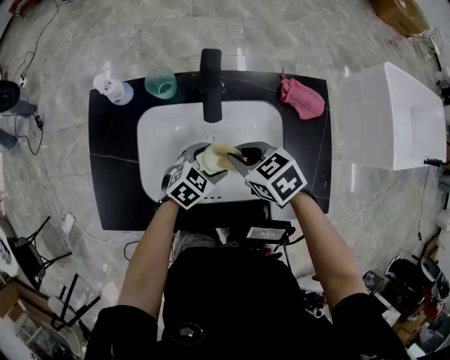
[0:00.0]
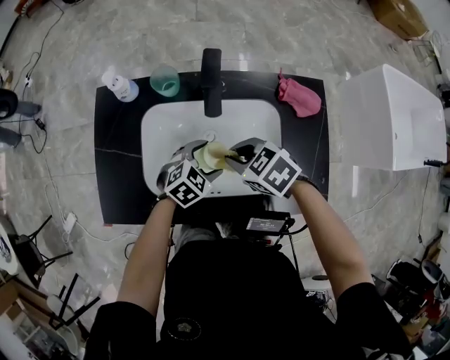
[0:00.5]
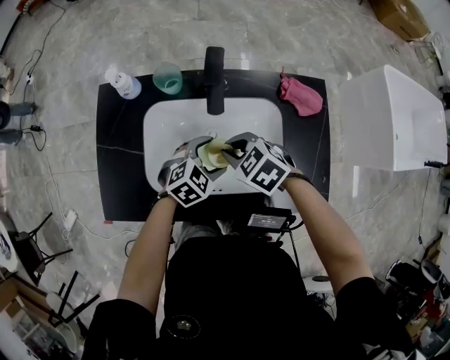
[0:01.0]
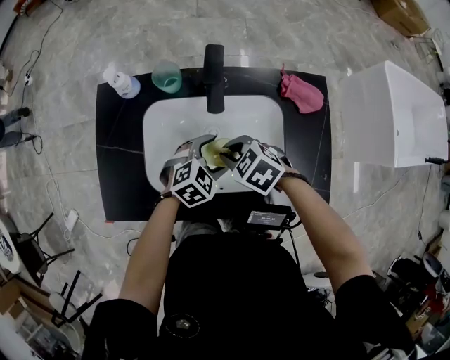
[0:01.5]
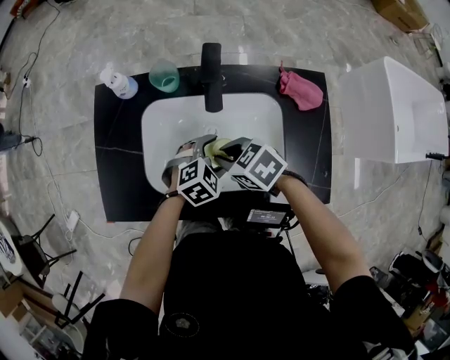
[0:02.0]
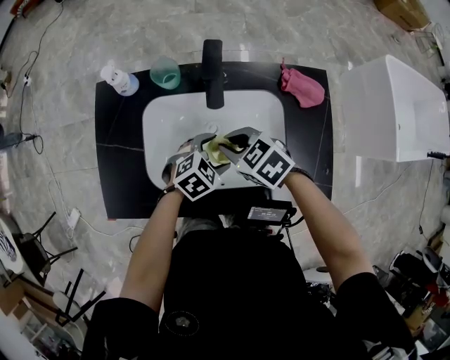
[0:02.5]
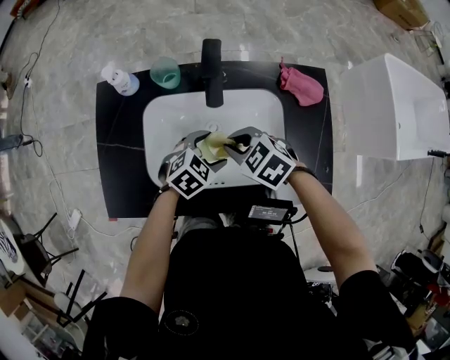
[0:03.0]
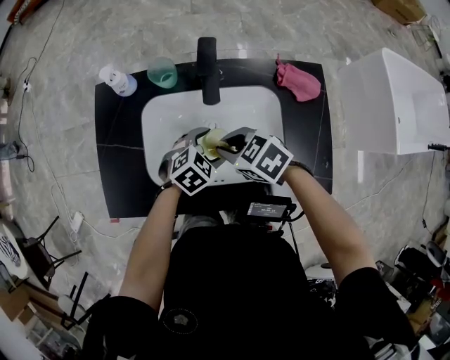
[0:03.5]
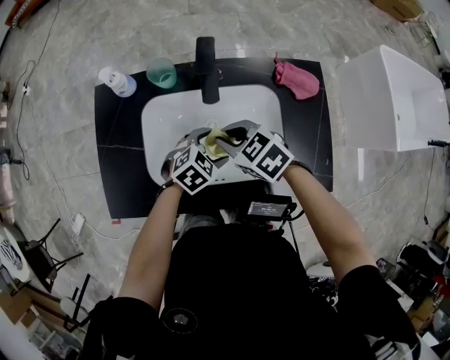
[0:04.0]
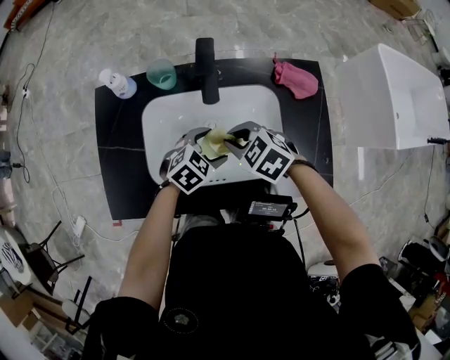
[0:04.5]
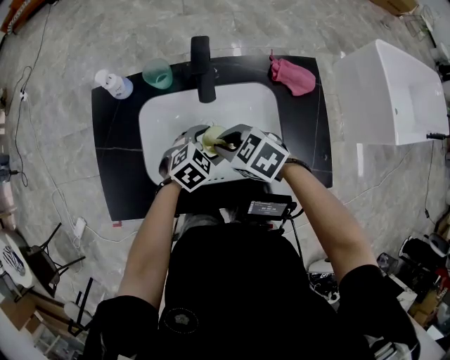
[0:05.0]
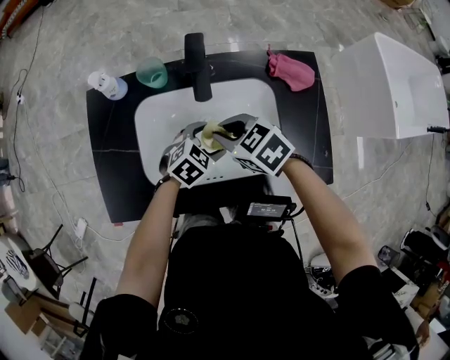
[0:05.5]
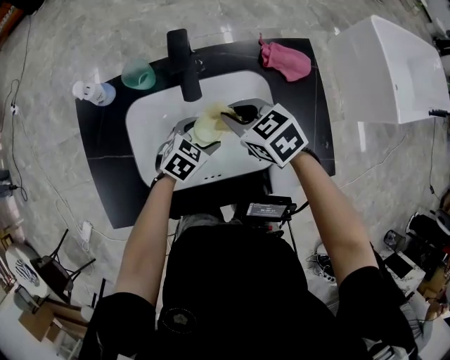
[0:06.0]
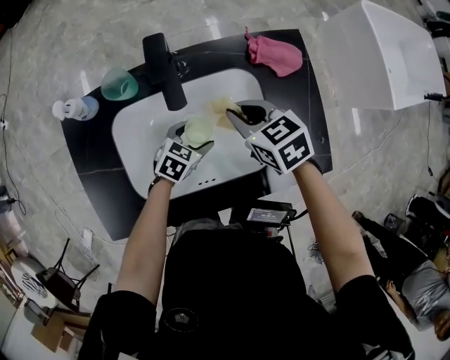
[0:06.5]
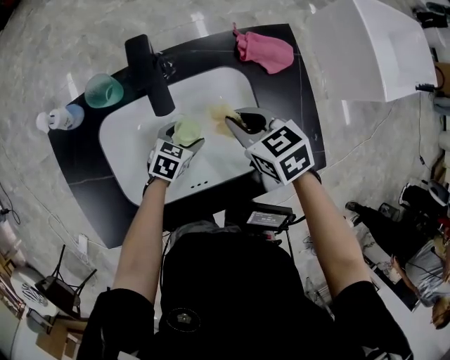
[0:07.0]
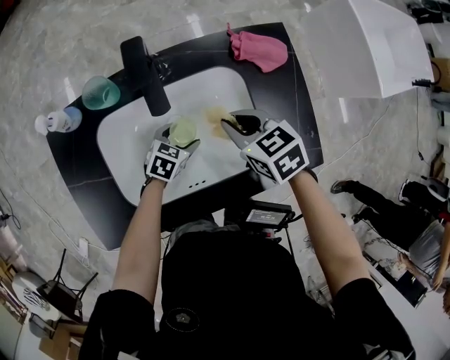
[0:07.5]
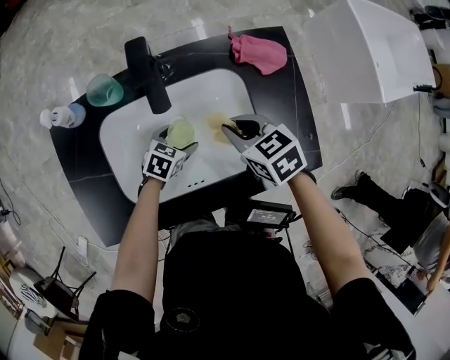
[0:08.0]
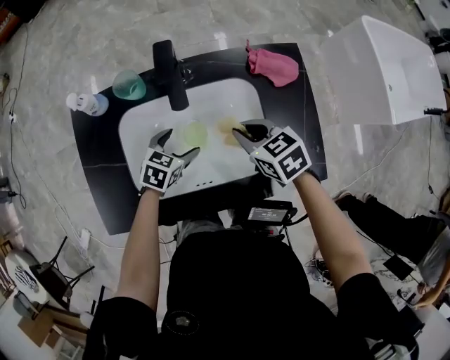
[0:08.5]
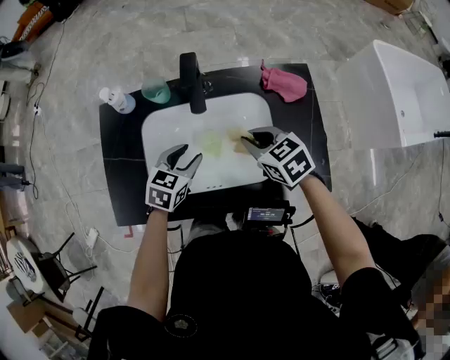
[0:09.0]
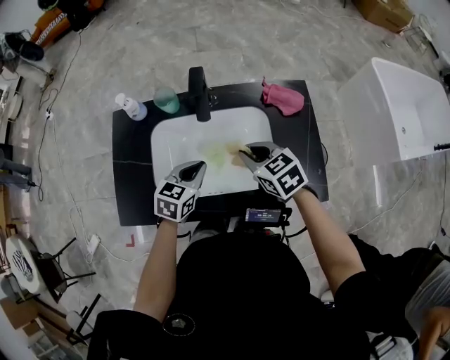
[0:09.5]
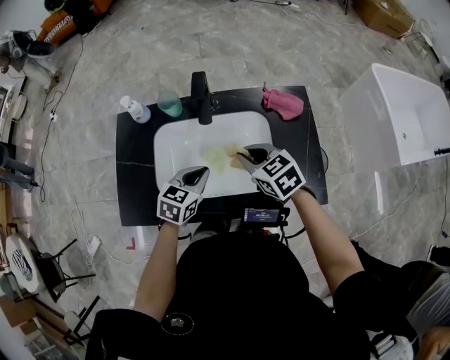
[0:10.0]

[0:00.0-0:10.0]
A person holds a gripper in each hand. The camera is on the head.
0:00.0 to 0:02.0: The right gripper moves roughly 5 cm.
0:02.0 to 0:04.0: The grippers make only small movements.
0:04.0 to 0:06.0: The right gripper ends up approximately 5 cm from where it was.
0:06.0 to 0:08.0: The left gripper travels downward by some 10 cm; the right gripper travels to the right by approximately 5 cm.
0:08.0 to 0:10.0: The right gripper shifts about 5 cm upward. Meanwhile the left gripper travels upward by roughly 20 cm, changes its angle by about 30 degrees, and closes.

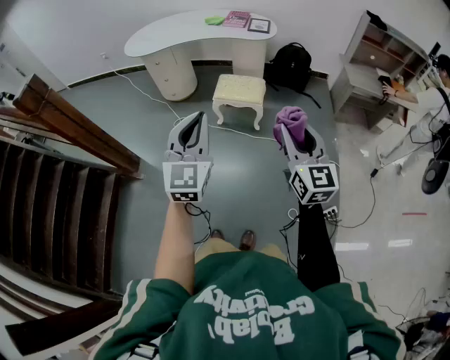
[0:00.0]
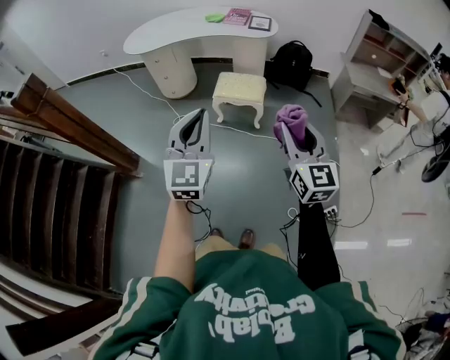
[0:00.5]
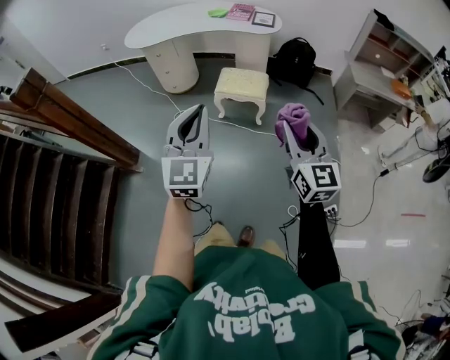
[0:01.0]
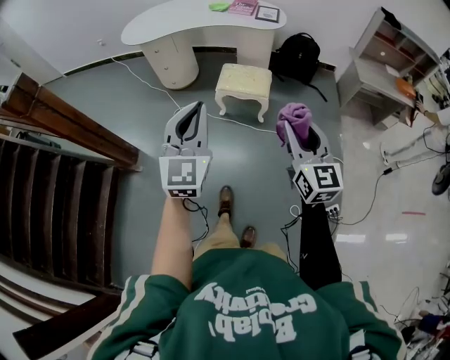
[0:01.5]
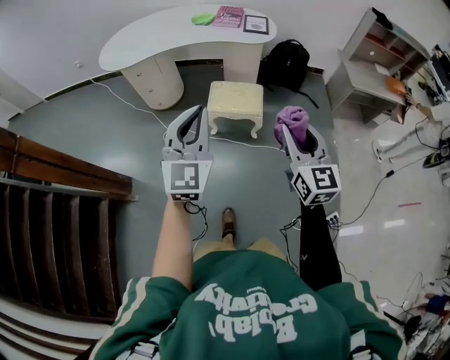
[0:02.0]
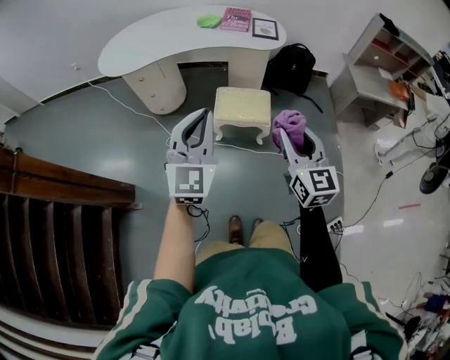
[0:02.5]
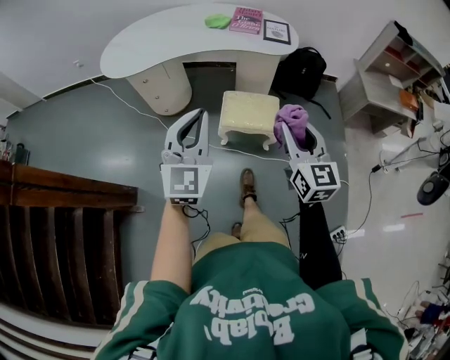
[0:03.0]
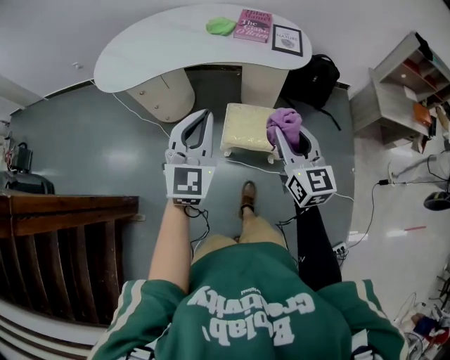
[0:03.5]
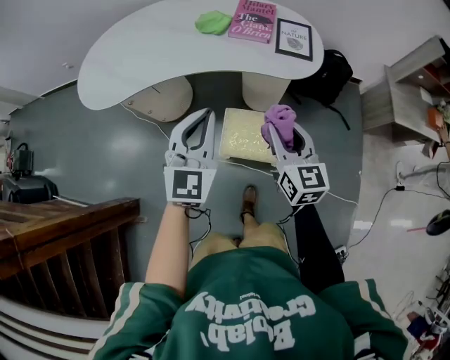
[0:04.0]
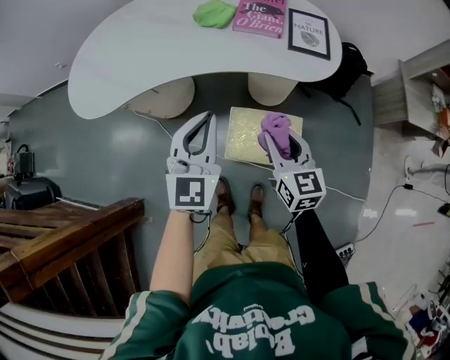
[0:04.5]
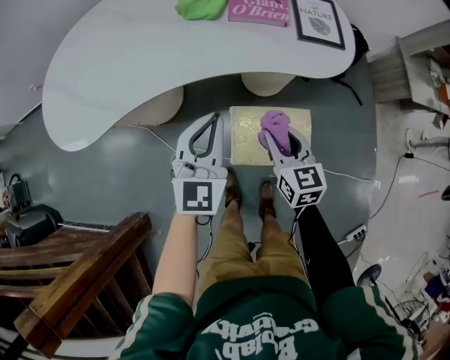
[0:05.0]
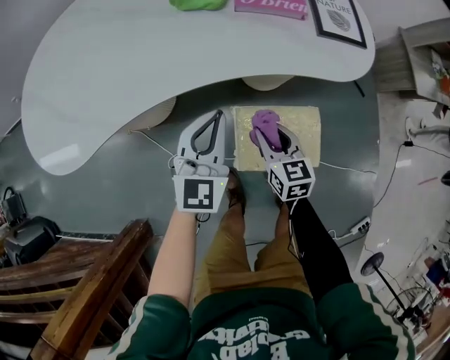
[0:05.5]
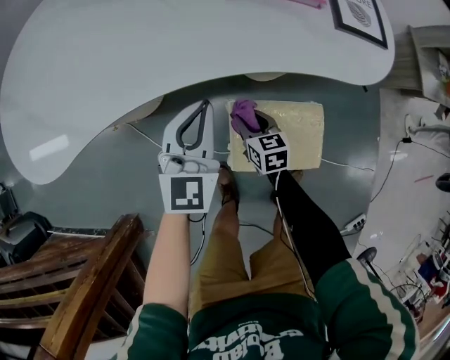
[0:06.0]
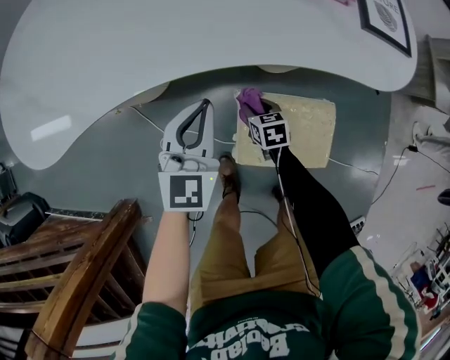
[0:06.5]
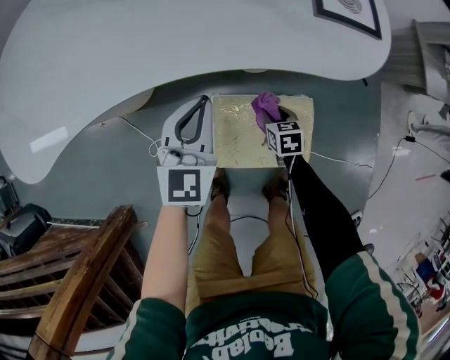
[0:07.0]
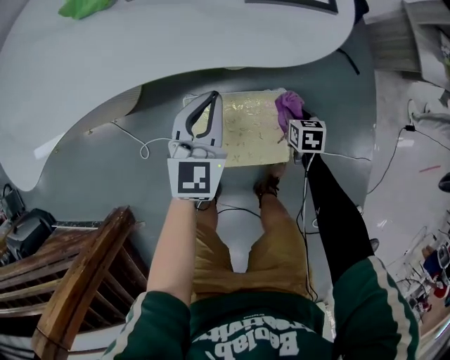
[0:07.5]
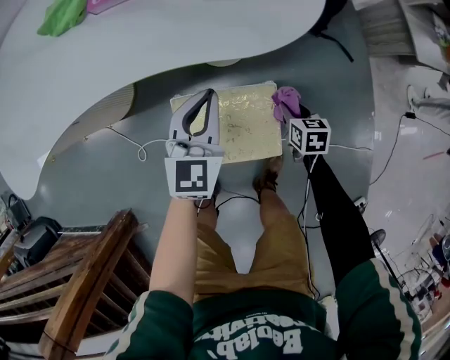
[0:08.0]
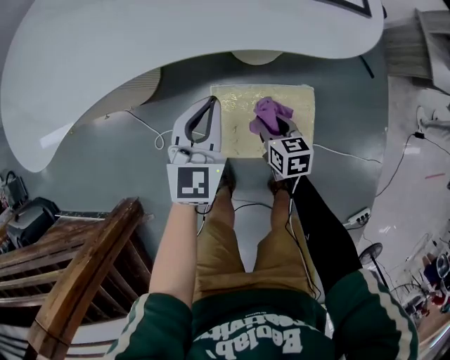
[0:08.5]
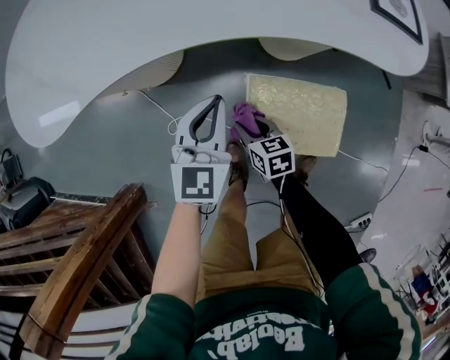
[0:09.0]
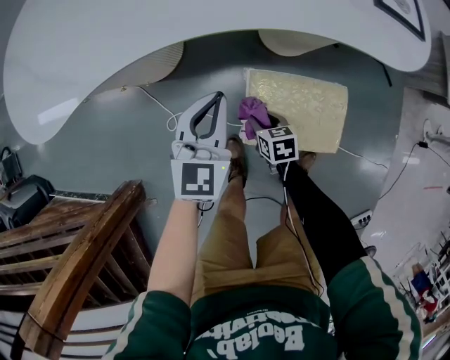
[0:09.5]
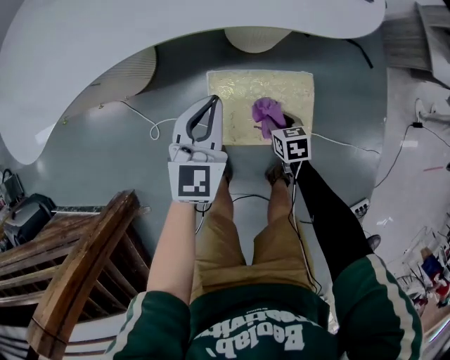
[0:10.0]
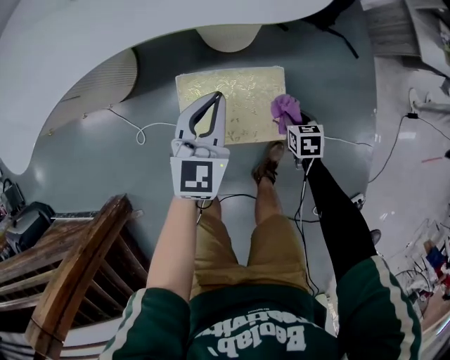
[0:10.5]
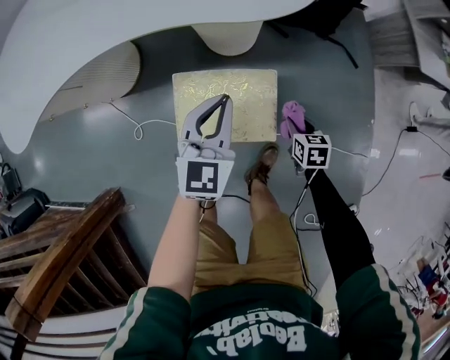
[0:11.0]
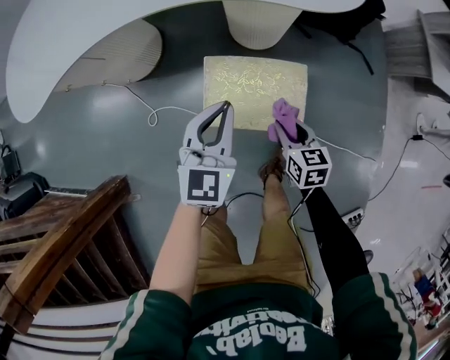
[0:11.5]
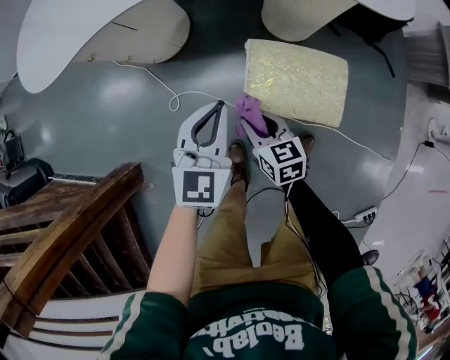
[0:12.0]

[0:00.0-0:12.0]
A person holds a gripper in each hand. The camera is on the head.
0:00.0 to 0:02.0: The two grippers go some 20 cm forward.
0:02.0 to 0:04.0: The pair of grippers is taken forward, about 40 cm.
0:04.0 to 0:06.0: The left gripper moves downward and forward, roughly 30 cm. The right gripper goes approximately 40 cm downward, and rotates roughly 30 degrees.
0:06.0 to 0:08.0: The right gripper shifts some 35 cm to the right. The left gripper heads to the right, covering roughly 20 cm.
0:08.0 to 0:10.0: The grippers both shift to the left by roughly 15 cm.
0:10.0 to 0:12.0: The left gripper moves backward and to the left, about 15 cm; the right gripper goes roughly 25 cm to the left and upward, and changes its angle by about 30 degrees.

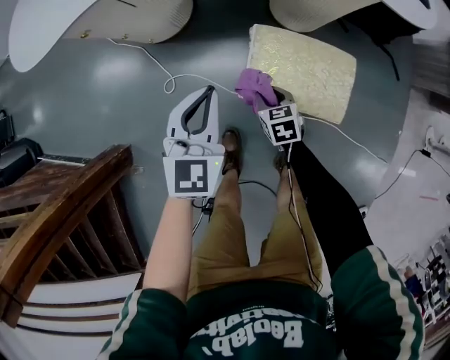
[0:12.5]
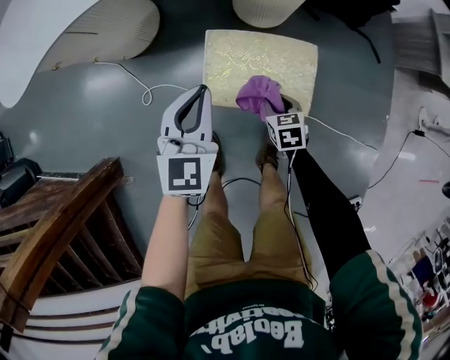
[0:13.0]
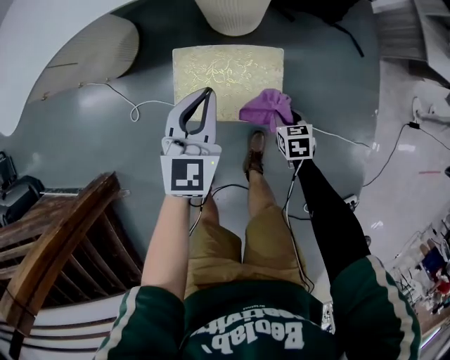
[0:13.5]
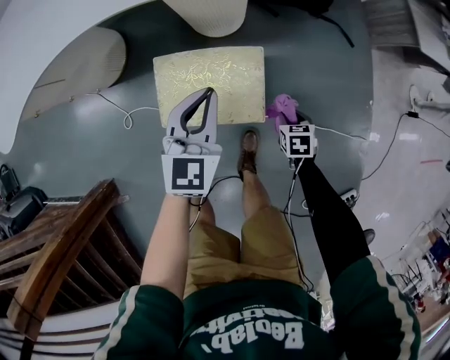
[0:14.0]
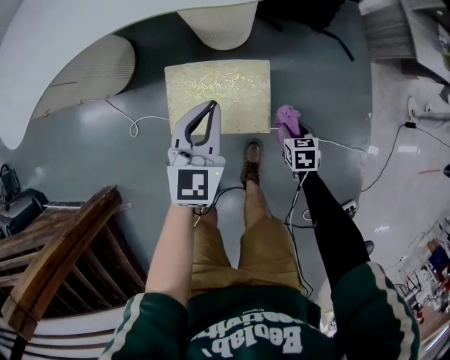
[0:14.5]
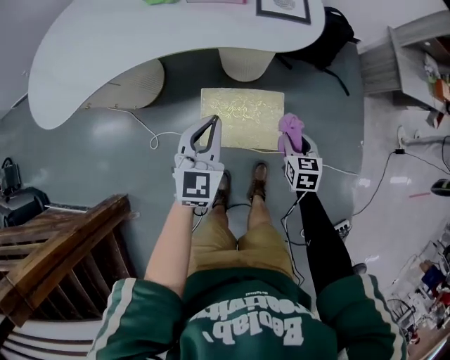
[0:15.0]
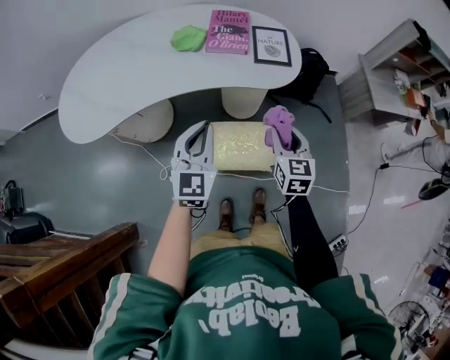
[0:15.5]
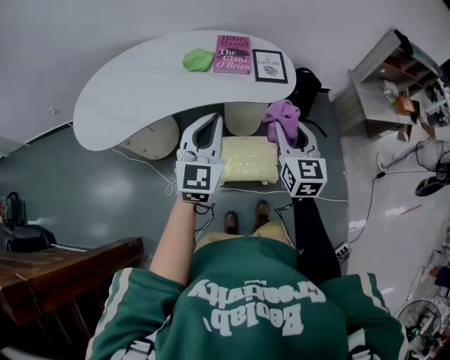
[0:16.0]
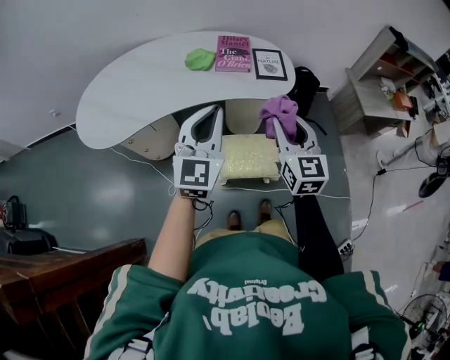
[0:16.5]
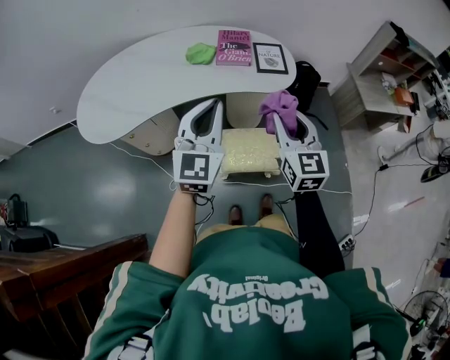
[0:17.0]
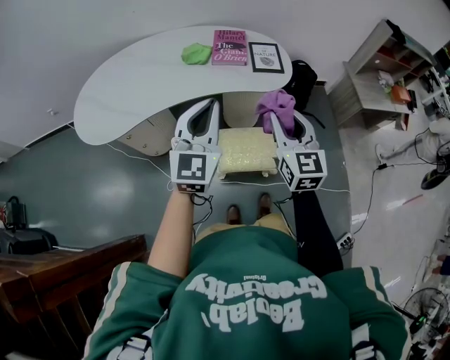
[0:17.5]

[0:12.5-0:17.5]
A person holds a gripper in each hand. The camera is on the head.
0:12.5 to 0:15.0: The right gripper shifts about 35 cm to the right and upward, and changes its angle by roughly 30 degrees, while the left gripper travels to the right and upward by roughly 20 cm.
0:15.0 to 0:17.5: Both grippers travel together upward, about 35 cm. The right gripper tips its fingers upward by some 40 degrees. The left gripper rotates approximately 20 degrees.
